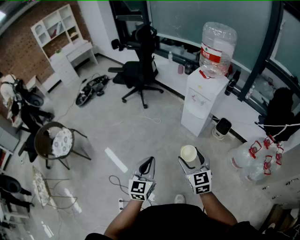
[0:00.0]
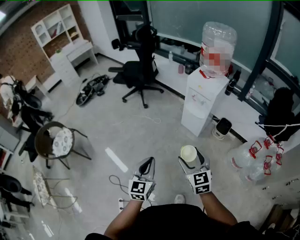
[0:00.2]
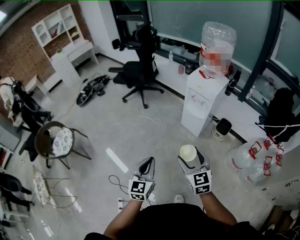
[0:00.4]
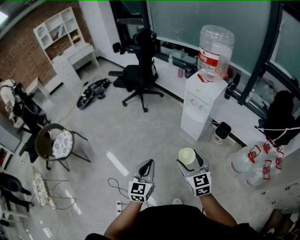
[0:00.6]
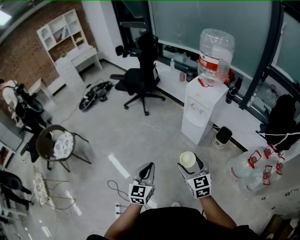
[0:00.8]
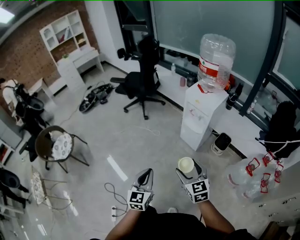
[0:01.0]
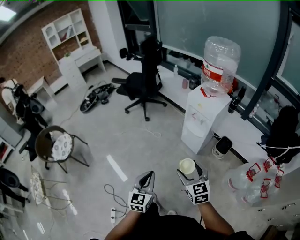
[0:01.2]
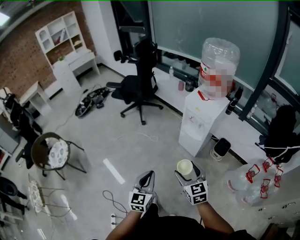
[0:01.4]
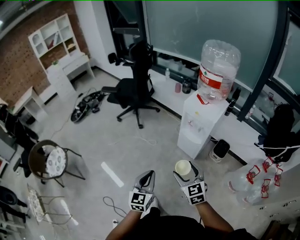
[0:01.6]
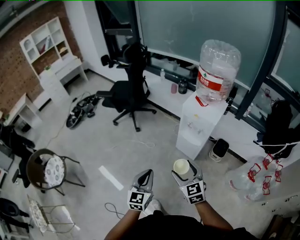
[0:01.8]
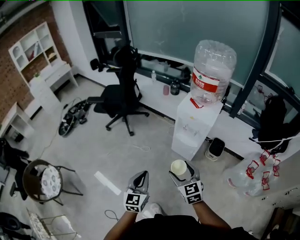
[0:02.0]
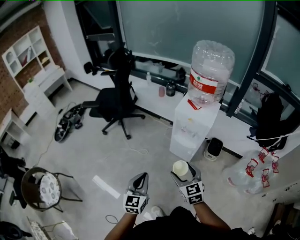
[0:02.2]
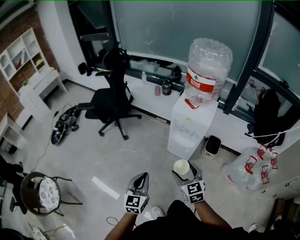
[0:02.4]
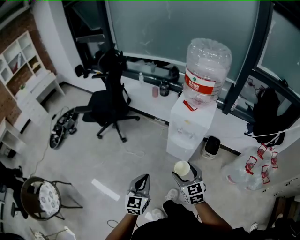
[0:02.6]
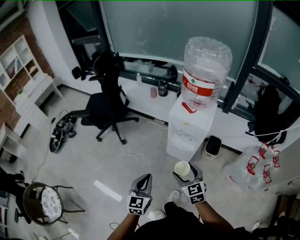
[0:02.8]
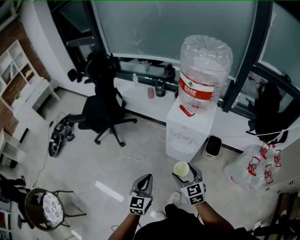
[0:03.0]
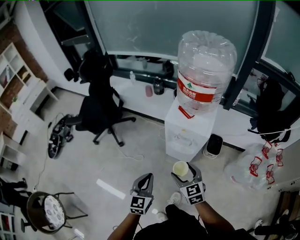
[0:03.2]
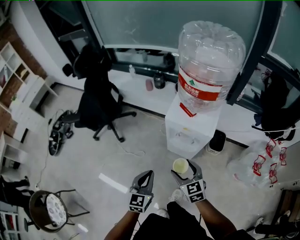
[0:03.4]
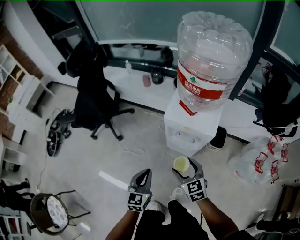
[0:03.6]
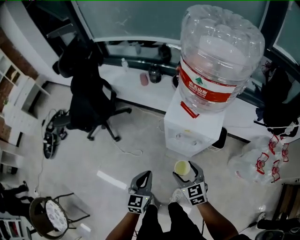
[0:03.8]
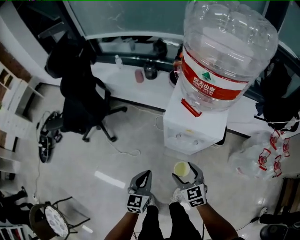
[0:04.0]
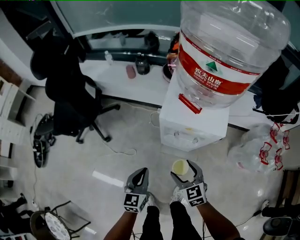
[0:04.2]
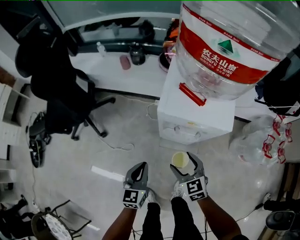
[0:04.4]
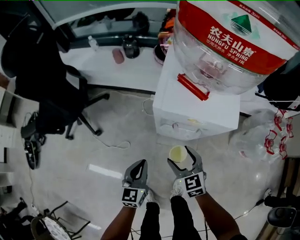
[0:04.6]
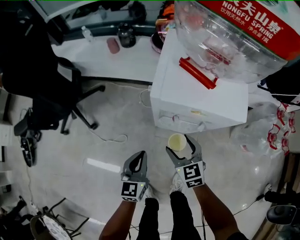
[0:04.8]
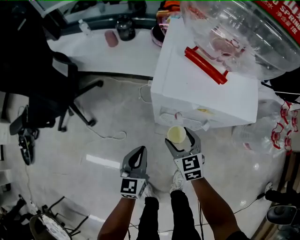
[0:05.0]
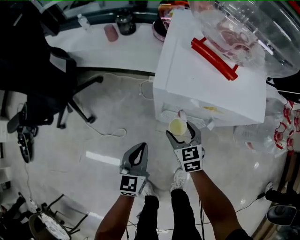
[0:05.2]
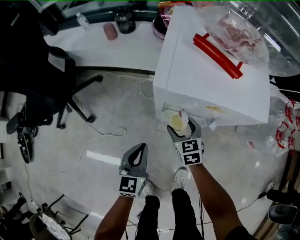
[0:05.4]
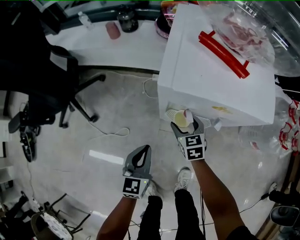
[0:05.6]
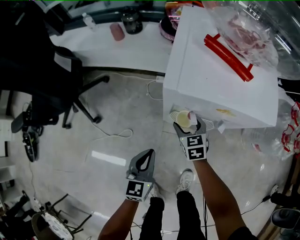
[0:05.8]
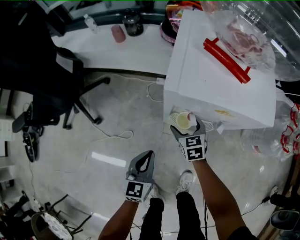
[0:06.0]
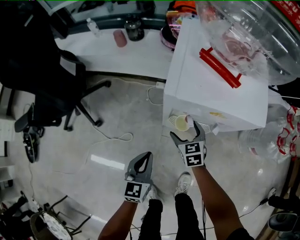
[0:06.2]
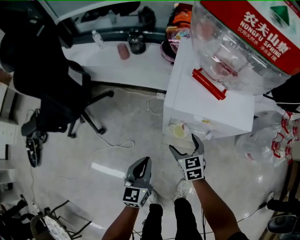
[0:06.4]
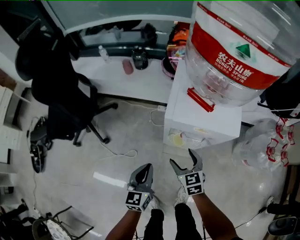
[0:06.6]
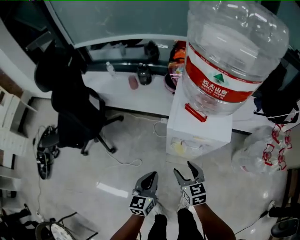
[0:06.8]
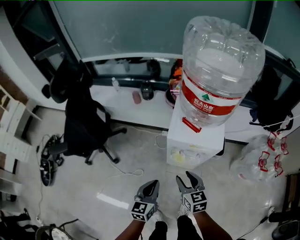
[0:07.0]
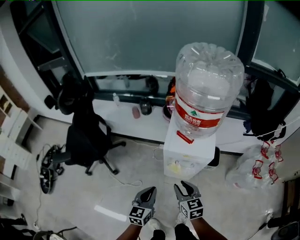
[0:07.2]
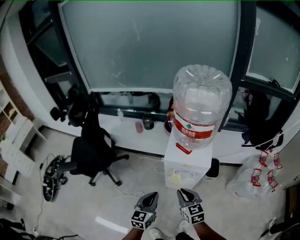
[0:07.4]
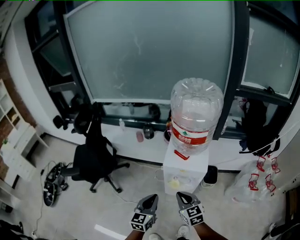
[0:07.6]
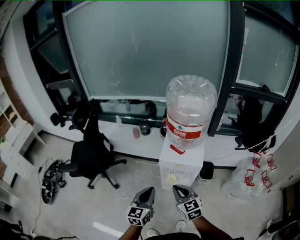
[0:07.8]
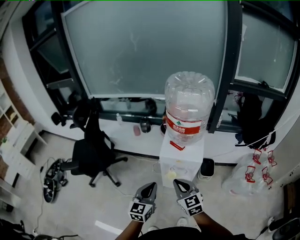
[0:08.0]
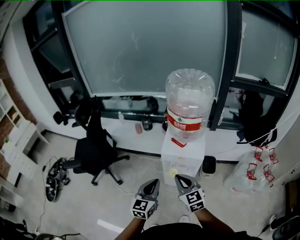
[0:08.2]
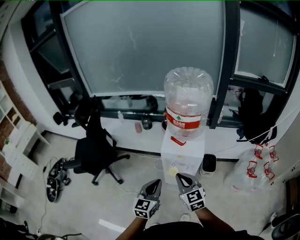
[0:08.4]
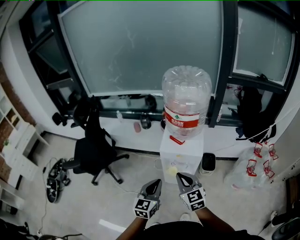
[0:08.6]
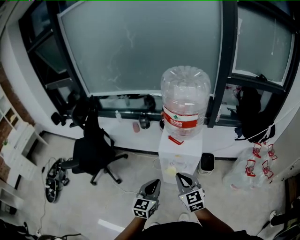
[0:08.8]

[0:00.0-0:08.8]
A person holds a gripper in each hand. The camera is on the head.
0:00.0 to 0:01.4: The two grippers go about 10 cm forward and to the right.
0:01.4 to 0:03.0: Both grippers move forward, some 25 cm. The left gripper turns by some 20 degrees.
0:03.0 to 0:04.4: The left gripper travels forward and downward by about 25 cm; the right gripper moves downward and forward, roughly 25 cm.
0:04.4 to 0:05.8: The right gripper shifts about 25 cm downward and forward; the left gripper heads downward, covering roughly 10 cm.
0:05.8 to 0:07.4: The left gripper goes about 30 cm upward. Meanwhile the right gripper is displaced upward and backward by roughly 40 cm, and closes its fingers.
0:07.4 to 0:08.8: Both grippers move upward, approximately 10 cm.

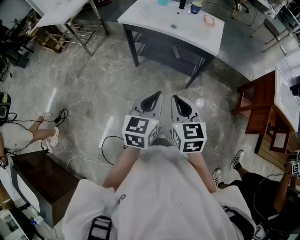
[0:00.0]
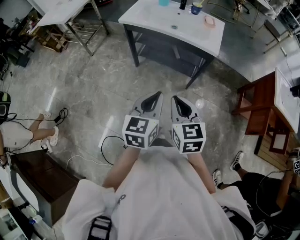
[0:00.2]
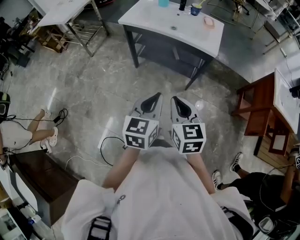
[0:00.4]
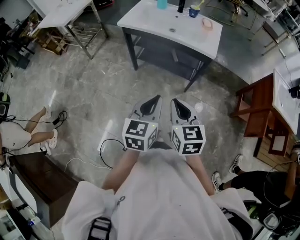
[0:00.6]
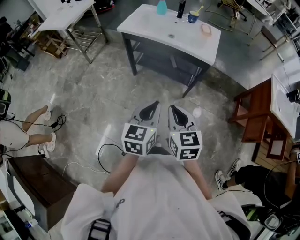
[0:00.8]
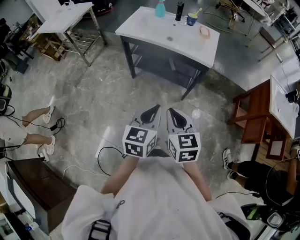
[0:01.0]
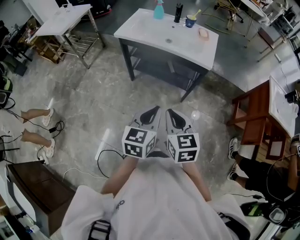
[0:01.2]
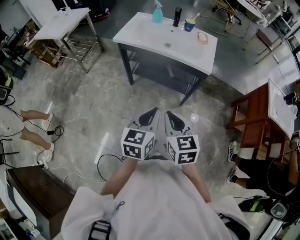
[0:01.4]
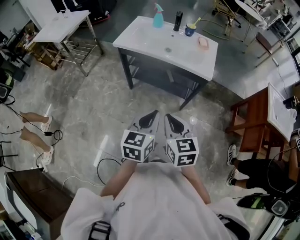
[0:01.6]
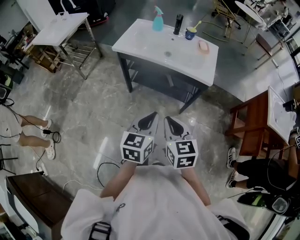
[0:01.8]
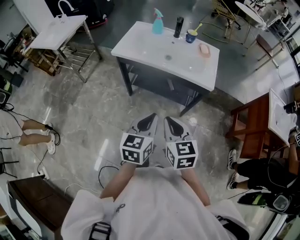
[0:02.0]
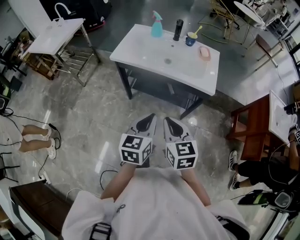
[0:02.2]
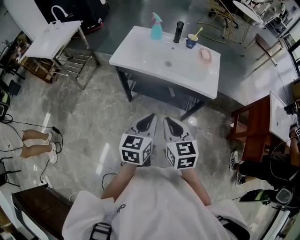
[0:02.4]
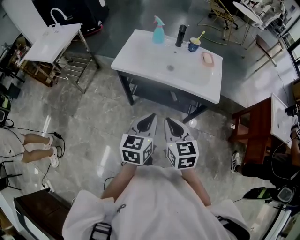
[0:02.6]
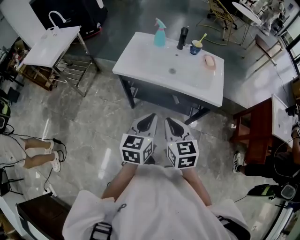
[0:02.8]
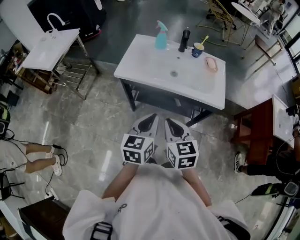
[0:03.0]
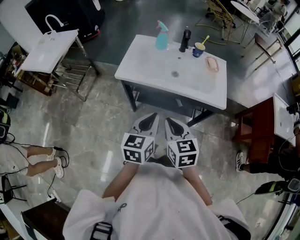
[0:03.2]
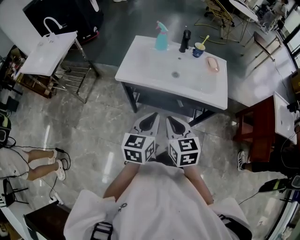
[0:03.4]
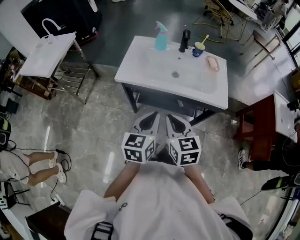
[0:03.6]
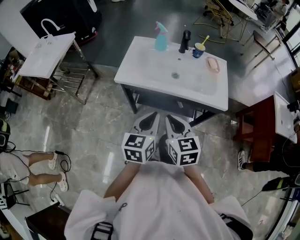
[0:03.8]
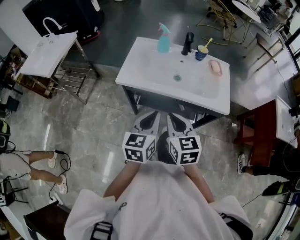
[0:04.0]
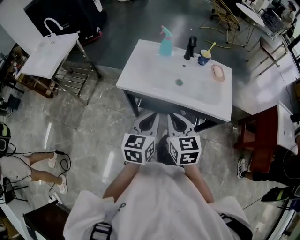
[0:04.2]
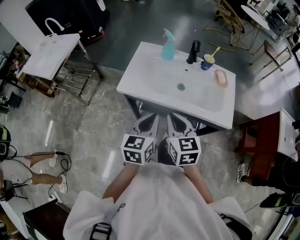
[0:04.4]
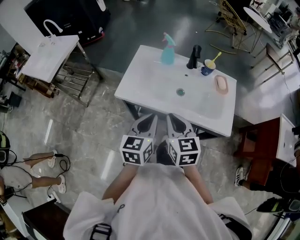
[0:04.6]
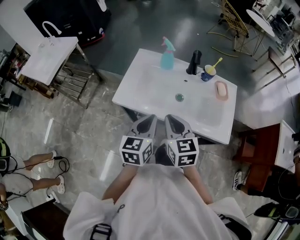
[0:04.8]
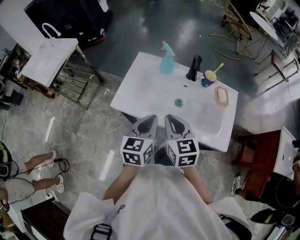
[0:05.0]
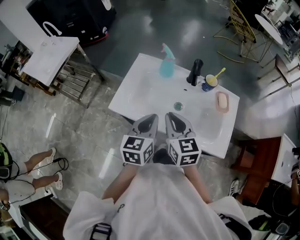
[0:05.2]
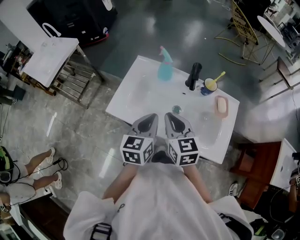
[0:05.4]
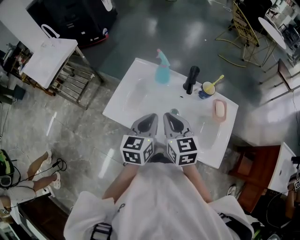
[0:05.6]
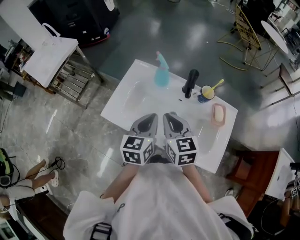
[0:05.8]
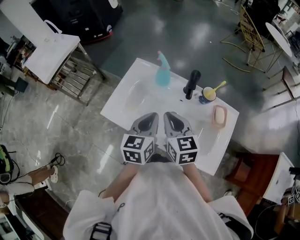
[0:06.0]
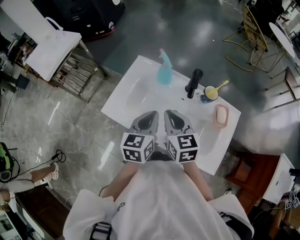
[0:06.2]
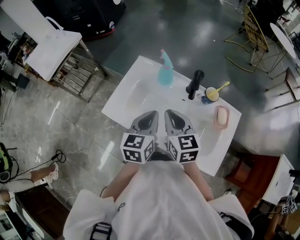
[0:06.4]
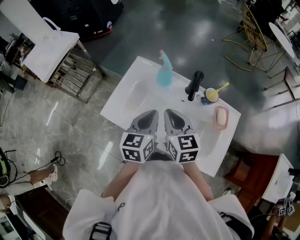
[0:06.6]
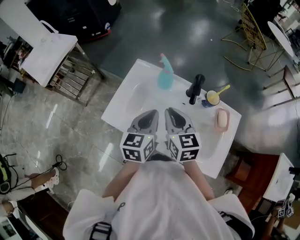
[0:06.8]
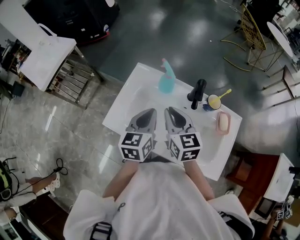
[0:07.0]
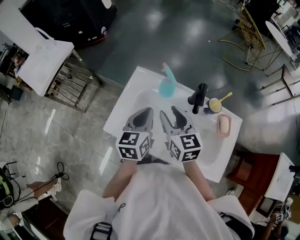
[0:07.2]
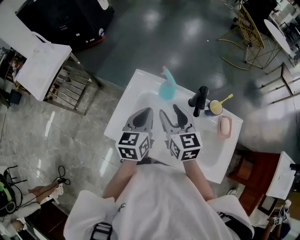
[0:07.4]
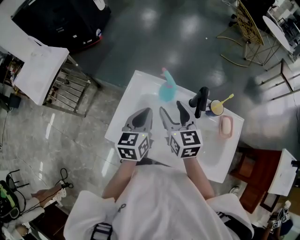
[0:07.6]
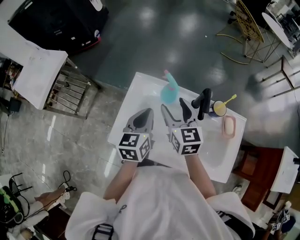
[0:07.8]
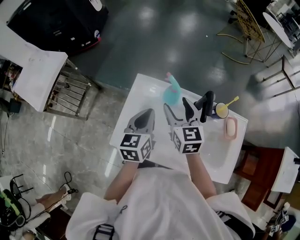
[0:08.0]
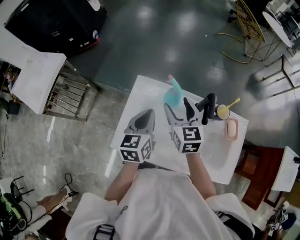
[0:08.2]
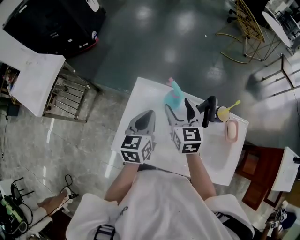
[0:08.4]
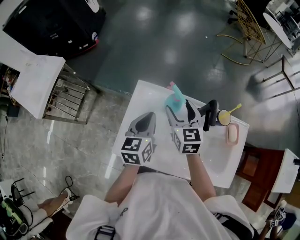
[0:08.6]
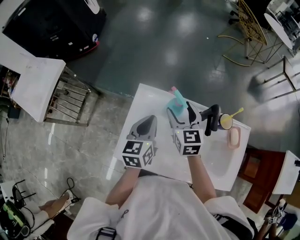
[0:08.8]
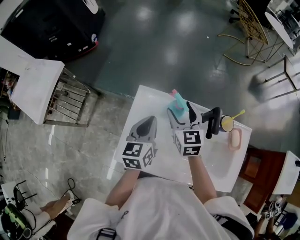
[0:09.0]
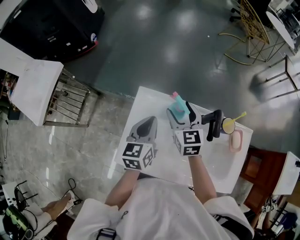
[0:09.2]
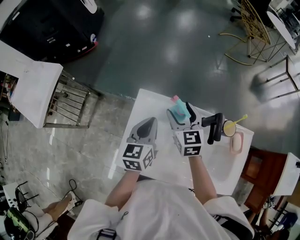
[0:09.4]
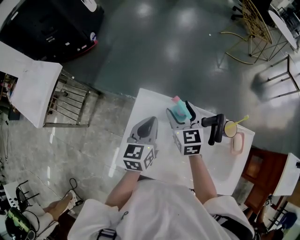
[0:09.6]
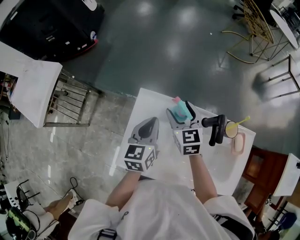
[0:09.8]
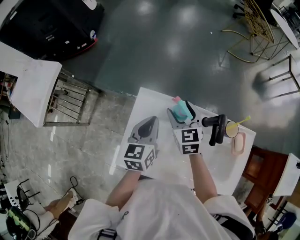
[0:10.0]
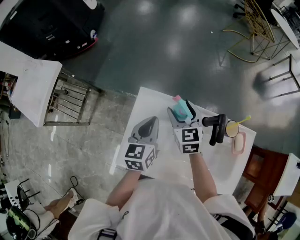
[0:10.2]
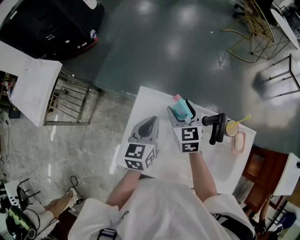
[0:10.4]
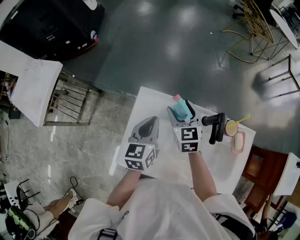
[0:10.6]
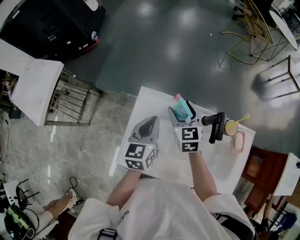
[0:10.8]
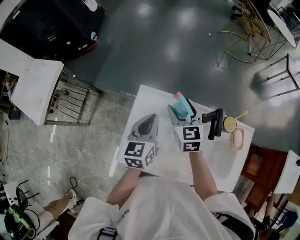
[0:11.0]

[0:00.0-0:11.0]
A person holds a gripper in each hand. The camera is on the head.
0:00.0 to 0:01.6: The grippers both shift forward by roughly 5 cm.
0:01.6 to 0:03.2: Both grippers move forward and to the left, about 25 cm.
0:03.2 to 0:04.8: Both grippers travel together forward, about 20 cm.
0:04.8 to 0:06.2: Both grippers move forward and to the right, some 15 cm.
0:06.2 to 0:07.8: The right gripper moves forward, approximately 15 cm, and opens its fingers; the left gripper is displaced forward and to the left by roughly 15 cm.
0:07.8 to 0:09.4: The right gripper goes roughly 10 cm forward and downward; the left gripper shifts roughly 10 cm forward.
0:09.4 to 0:11.0: There are only small adjustments of the grippers.

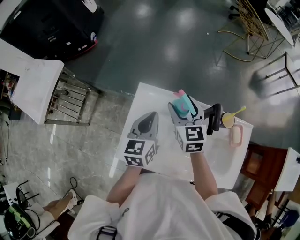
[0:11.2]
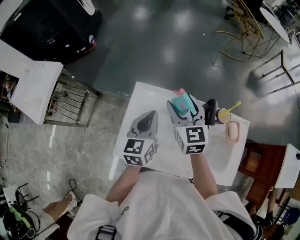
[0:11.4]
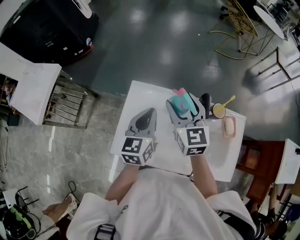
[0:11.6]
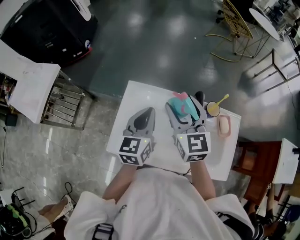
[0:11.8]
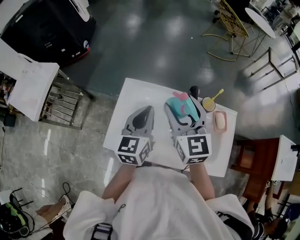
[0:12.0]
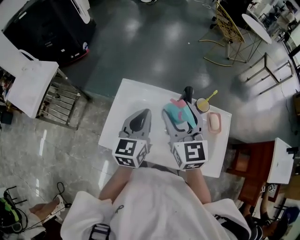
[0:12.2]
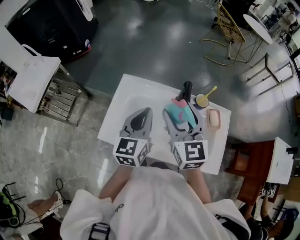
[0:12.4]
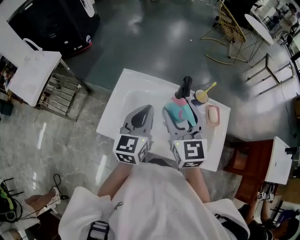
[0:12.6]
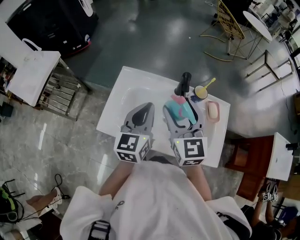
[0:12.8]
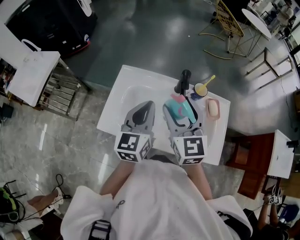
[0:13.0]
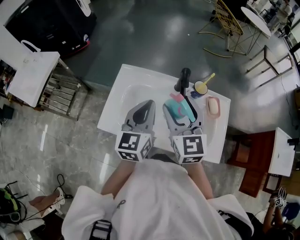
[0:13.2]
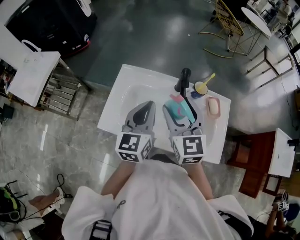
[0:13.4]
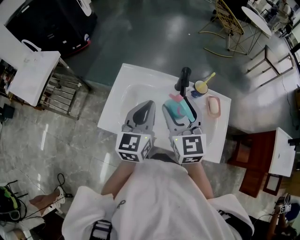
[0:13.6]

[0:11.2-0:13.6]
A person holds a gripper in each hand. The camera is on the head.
0:11.2 to 0:12.4: Both grippers move backward, upward and to the right, roughly 20 cm.
0:12.4 to 0:13.6: The grippers stay close to where they were, moving slightly.

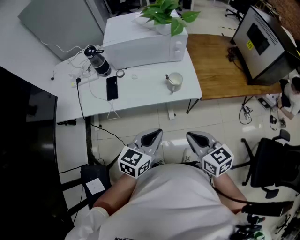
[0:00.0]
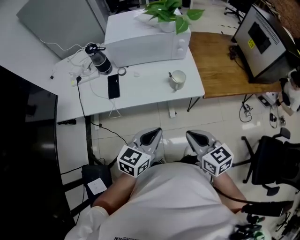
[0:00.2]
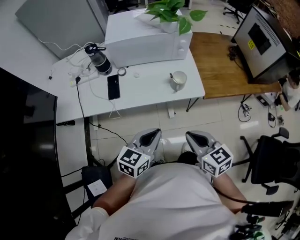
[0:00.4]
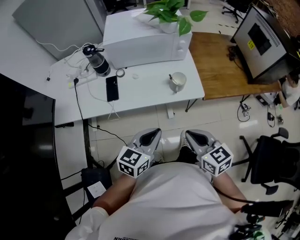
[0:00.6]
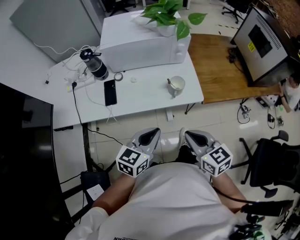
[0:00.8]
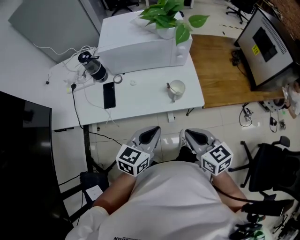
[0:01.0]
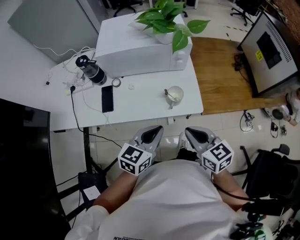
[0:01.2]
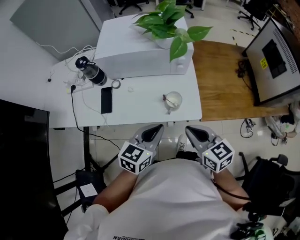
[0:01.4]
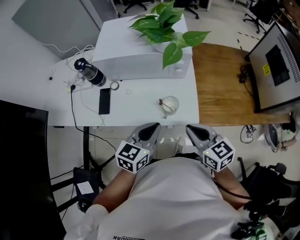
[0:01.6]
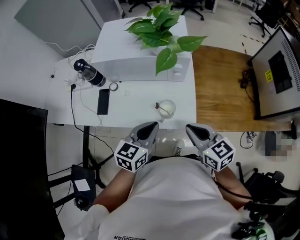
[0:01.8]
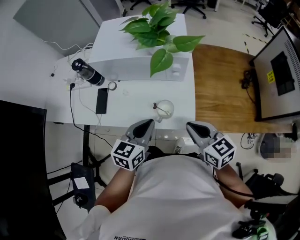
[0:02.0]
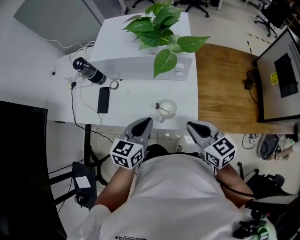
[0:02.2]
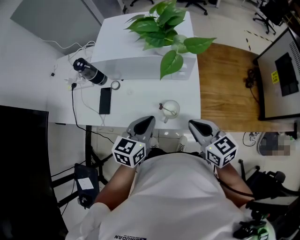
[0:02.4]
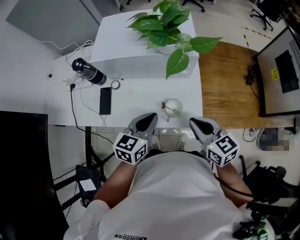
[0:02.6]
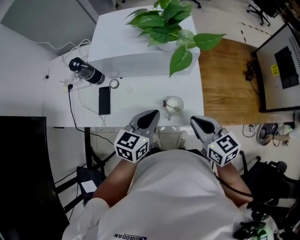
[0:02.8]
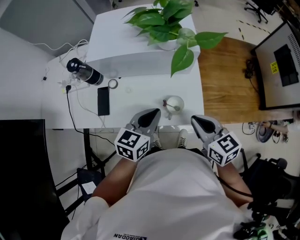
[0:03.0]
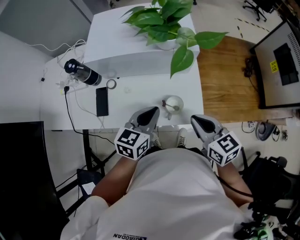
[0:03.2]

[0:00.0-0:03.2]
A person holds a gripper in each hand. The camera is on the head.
0:00.0 to 0:01.6: Both grippers travel together forward, some 20 cm.
0:01.6 to 0:03.2: The right gripper goes roughly 5 cm forward; the left gripper heads forward, covering some 10 cm.
